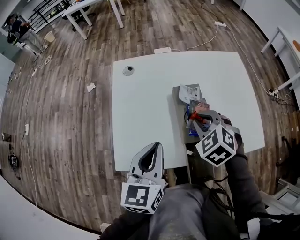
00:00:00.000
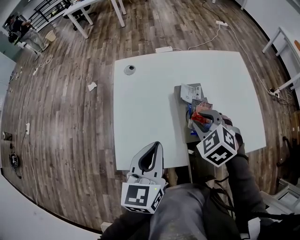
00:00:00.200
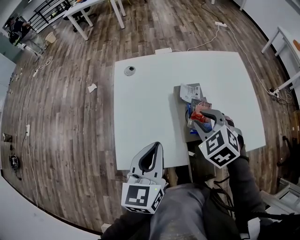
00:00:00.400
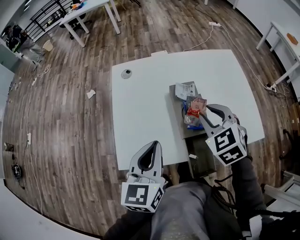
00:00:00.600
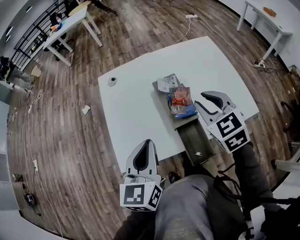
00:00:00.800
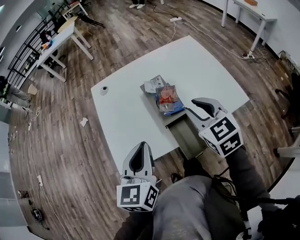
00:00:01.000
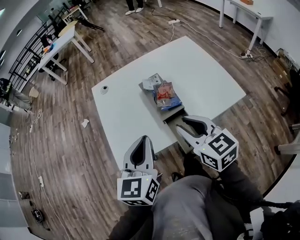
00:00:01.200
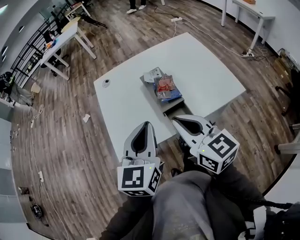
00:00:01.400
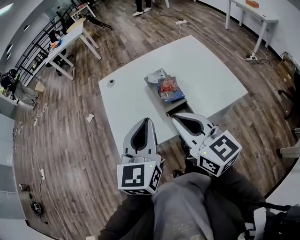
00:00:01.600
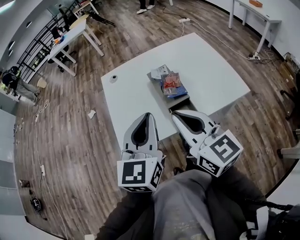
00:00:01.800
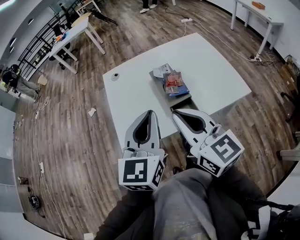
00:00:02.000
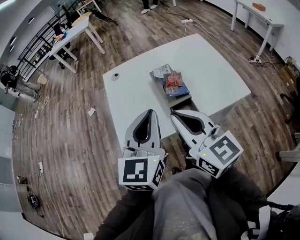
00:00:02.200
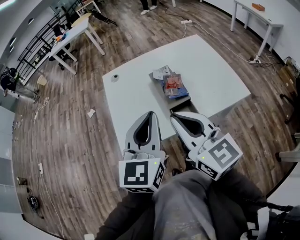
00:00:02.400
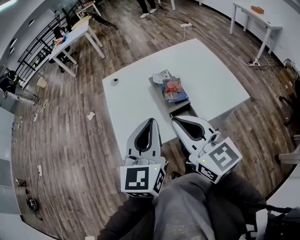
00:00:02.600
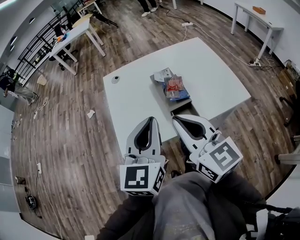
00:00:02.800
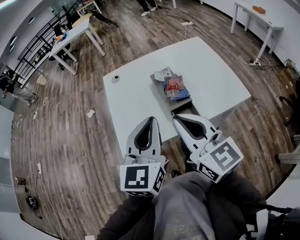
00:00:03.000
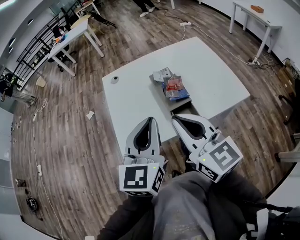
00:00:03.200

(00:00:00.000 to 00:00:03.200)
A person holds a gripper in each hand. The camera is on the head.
00:00:00.000 - 00:00:01.600: The left gripper shifts roughly 15 cm upward and backward, and rotates about 20 degrees. Meanwhile the right gripper shifts roughly 25 cm backward and upward, and tips its fingers upward by approximately 50 degrees.
00:00:01.600 - 00:00:03.200: The grippers stay close to where they were, moving slightly.

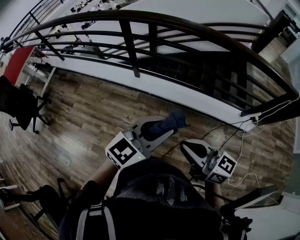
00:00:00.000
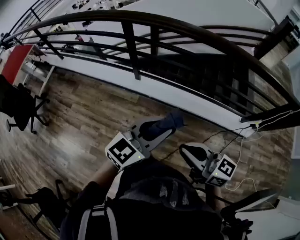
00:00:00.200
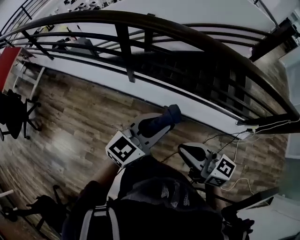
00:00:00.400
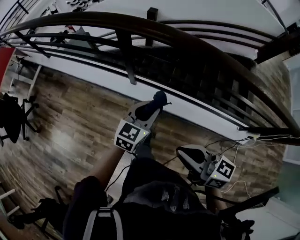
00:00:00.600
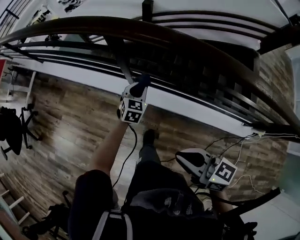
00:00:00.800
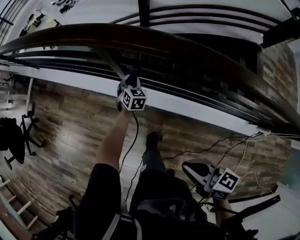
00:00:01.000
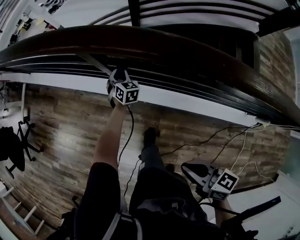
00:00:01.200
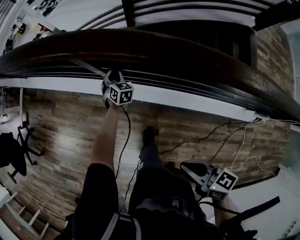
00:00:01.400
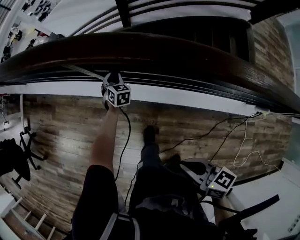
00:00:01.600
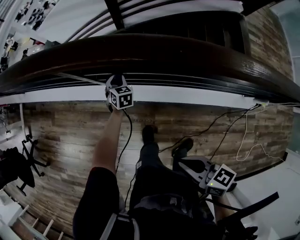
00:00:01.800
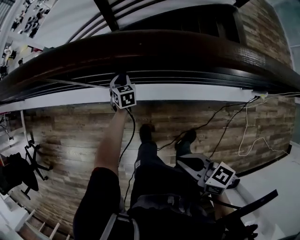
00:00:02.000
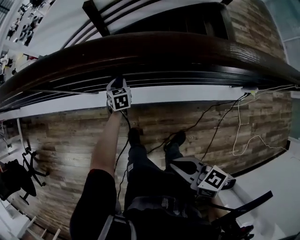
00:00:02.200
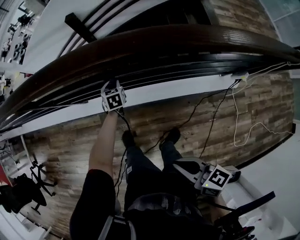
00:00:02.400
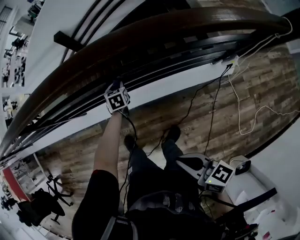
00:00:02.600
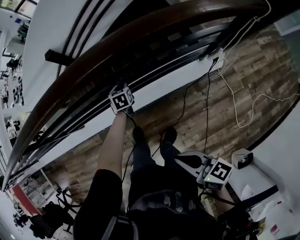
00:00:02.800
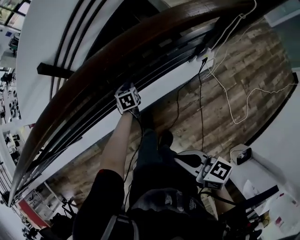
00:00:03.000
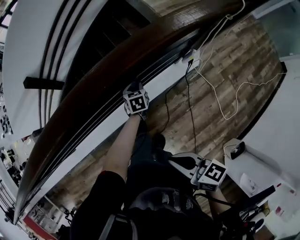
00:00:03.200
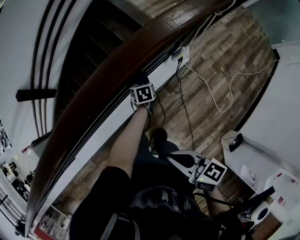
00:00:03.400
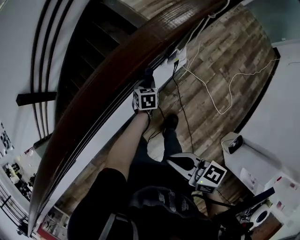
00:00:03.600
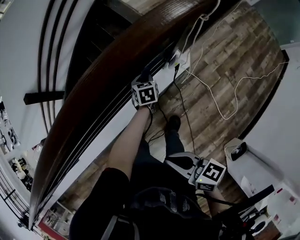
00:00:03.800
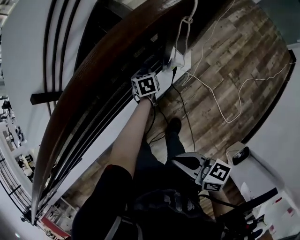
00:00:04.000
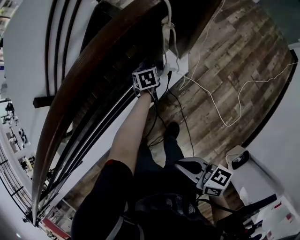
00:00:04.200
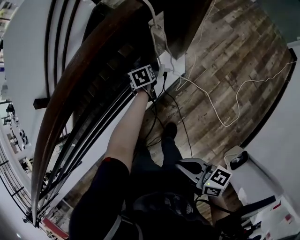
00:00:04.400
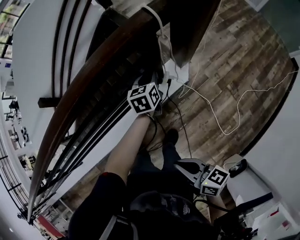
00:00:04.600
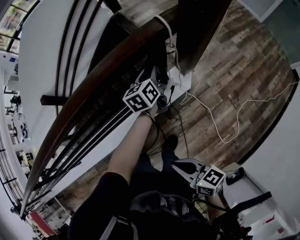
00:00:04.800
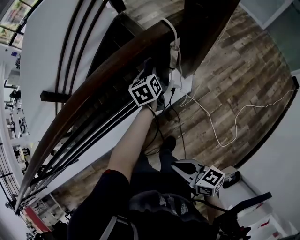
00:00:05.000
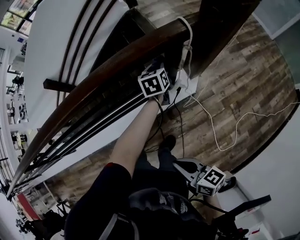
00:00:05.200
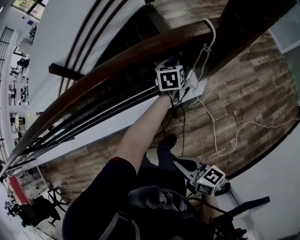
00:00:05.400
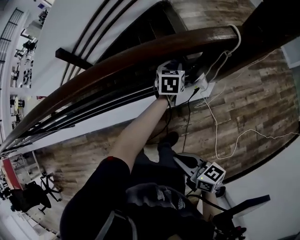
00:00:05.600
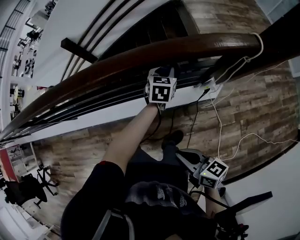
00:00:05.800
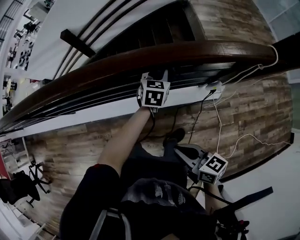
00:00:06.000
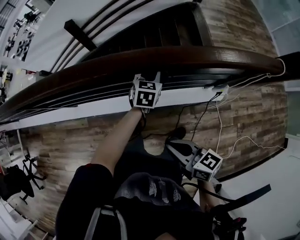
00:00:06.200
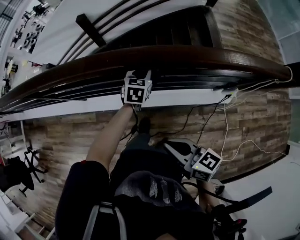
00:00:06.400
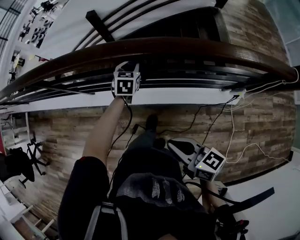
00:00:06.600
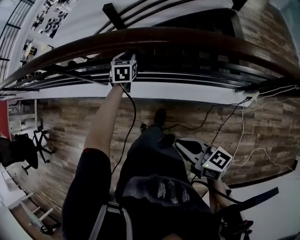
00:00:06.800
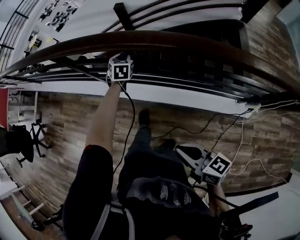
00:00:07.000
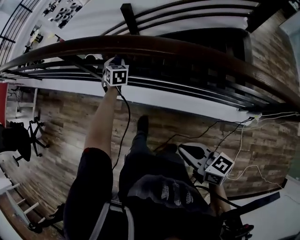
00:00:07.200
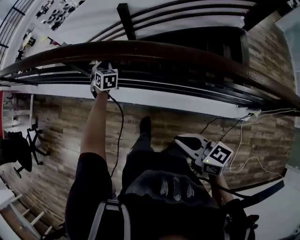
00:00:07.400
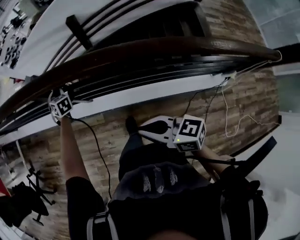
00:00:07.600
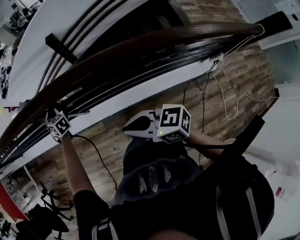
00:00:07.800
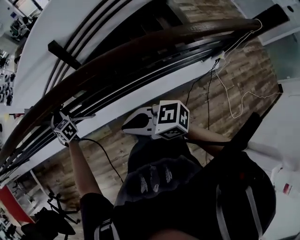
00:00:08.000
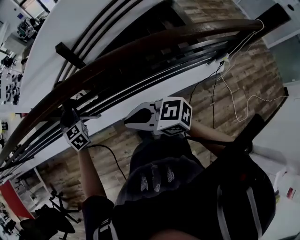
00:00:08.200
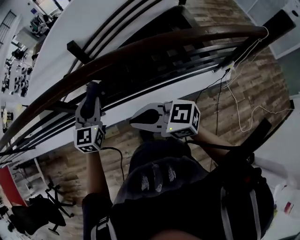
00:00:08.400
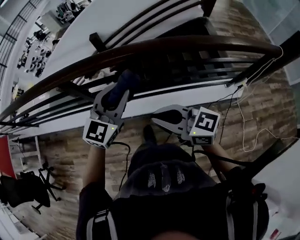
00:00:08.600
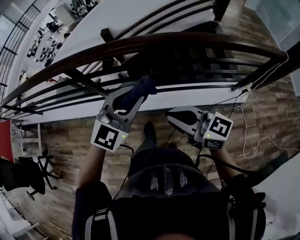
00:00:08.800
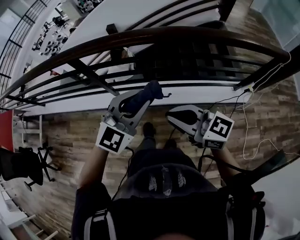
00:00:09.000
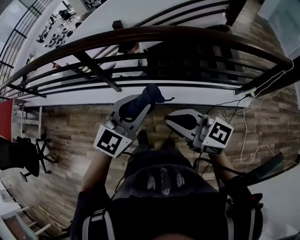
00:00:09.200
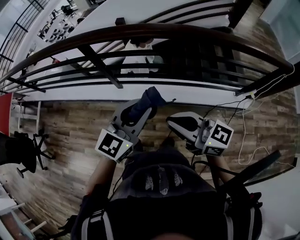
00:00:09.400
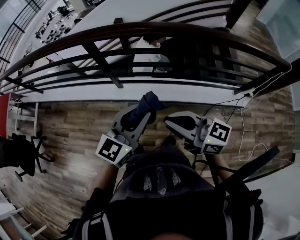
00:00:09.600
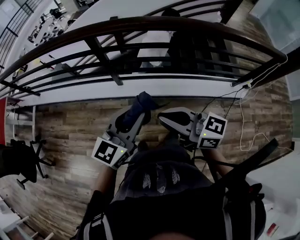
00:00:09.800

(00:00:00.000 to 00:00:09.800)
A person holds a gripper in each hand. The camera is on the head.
00:00:00.000 - 00:00:01.400: The left gripper moves about 80 cm, and points its fingers about 40 degrees further downward, while the right gripper moves about 35 cm, and changes its angle by some 30 degrees.
00:00:01.400 - 00:00:02.800: The pair of grippers is taken about 50 cm. The left gripper changes its angle by roughly 30 degrees. The right gripper rotates some 30 degrees.
00:00:02.800 - 00:00:04.200: The right gripper changes place by approximately 30 cm, and rotates some 20 degrees, while the left gripper ends up approximately 60 cm from where it was, and changes its angle by some 20 degrees.
00:00:04.200 - 00:00:05.600: The right gripper rotates roughly 20 degrees. Meanwhile the left gripper heads upward and to the left, covering approximately 20 cm.
00:00:05.600 - 00:00:07.000: The two grippers travel together, approximately 60 cm. The left gripper turns by some 40 degrees. Meanwhile the right gripper swivels approximately 30 degrees.
00:00:07.000 - 00:00:08.400: The right gripper changes place by approximately 30 cm, and changes its angle by approximately 20 degrees, while the left gripper moves upward, some 20 cm, and changes its angle by roughly 40 degrees.
00:00:08.400 - 00:00:09.800: The right gripper shifts some 20 cm backward and to the left. Meanwhile the left gripper heads backward, covering approximately 30 cm.

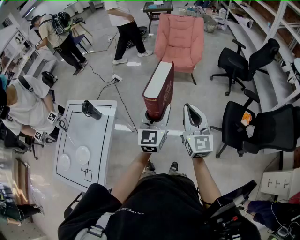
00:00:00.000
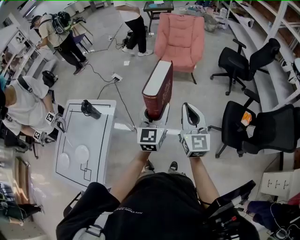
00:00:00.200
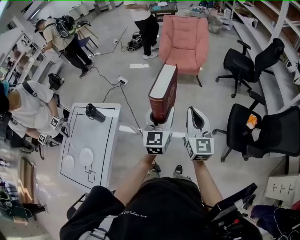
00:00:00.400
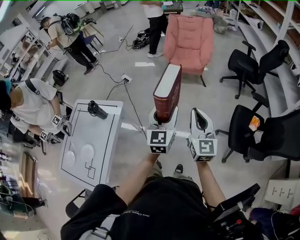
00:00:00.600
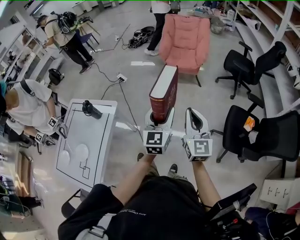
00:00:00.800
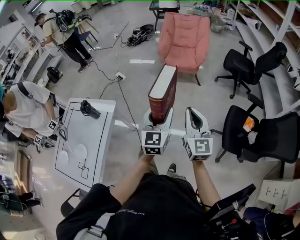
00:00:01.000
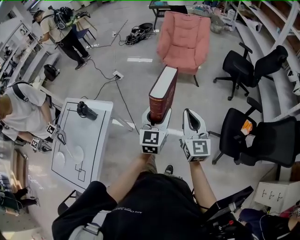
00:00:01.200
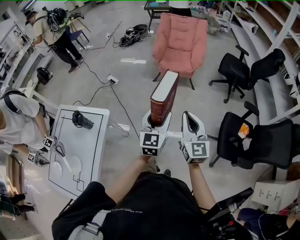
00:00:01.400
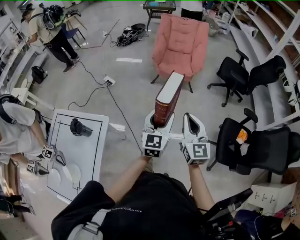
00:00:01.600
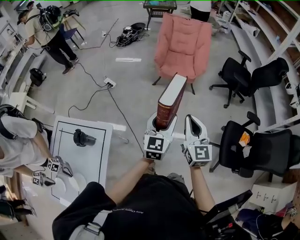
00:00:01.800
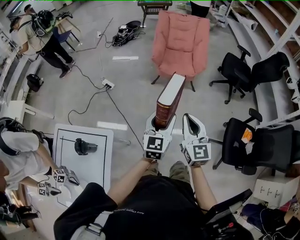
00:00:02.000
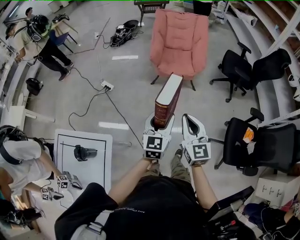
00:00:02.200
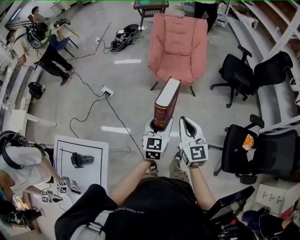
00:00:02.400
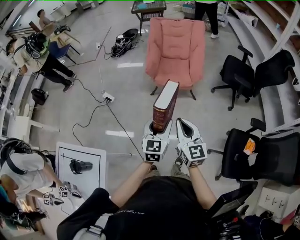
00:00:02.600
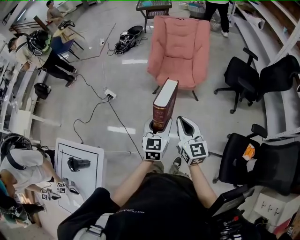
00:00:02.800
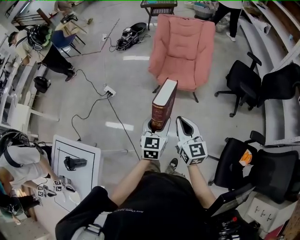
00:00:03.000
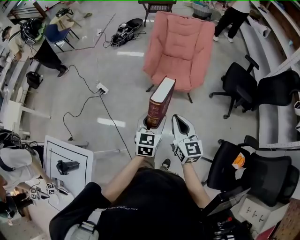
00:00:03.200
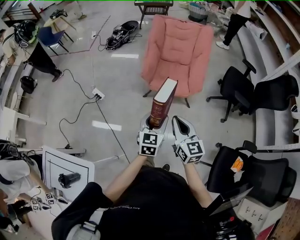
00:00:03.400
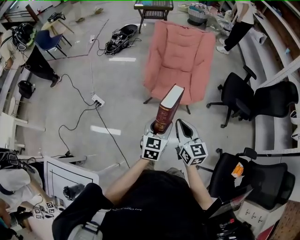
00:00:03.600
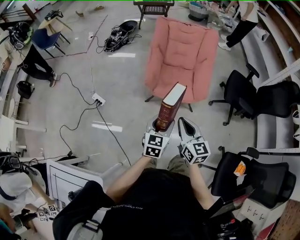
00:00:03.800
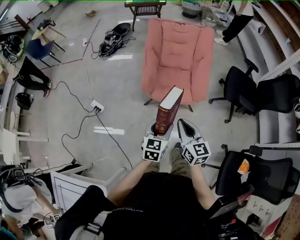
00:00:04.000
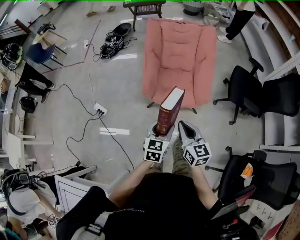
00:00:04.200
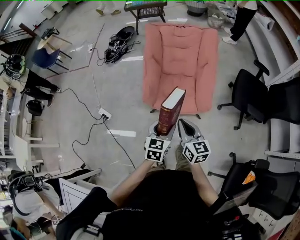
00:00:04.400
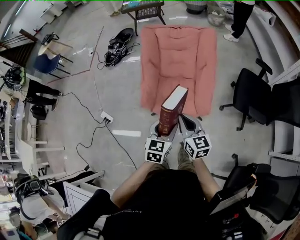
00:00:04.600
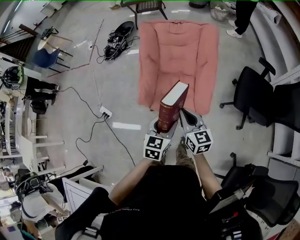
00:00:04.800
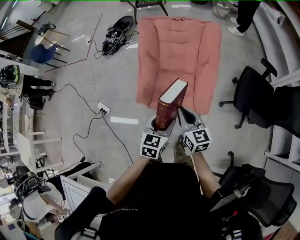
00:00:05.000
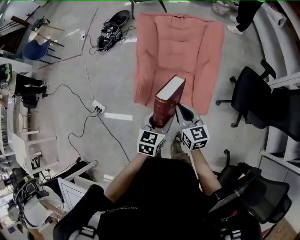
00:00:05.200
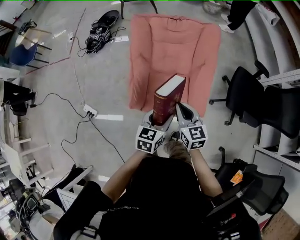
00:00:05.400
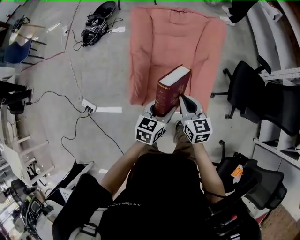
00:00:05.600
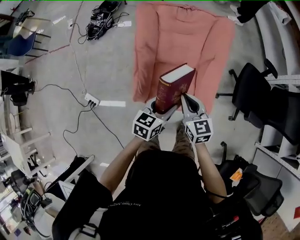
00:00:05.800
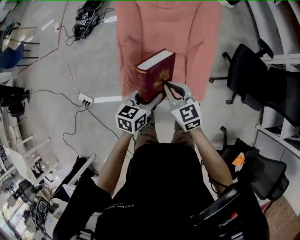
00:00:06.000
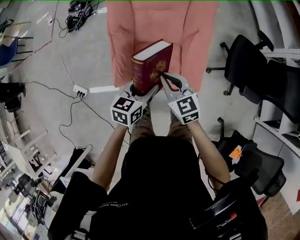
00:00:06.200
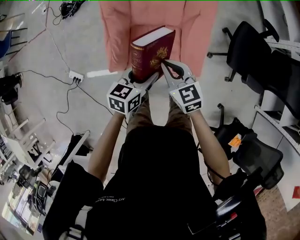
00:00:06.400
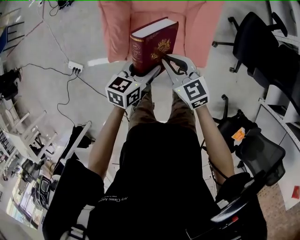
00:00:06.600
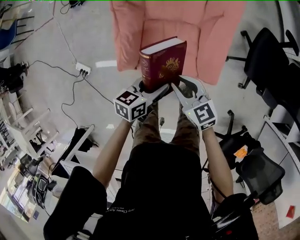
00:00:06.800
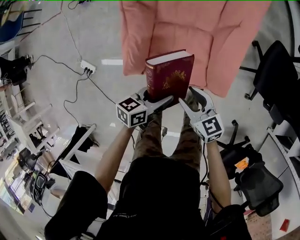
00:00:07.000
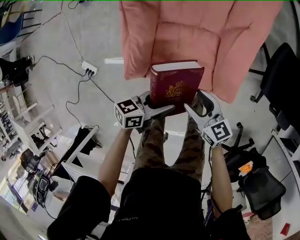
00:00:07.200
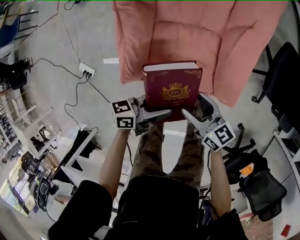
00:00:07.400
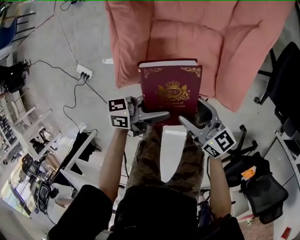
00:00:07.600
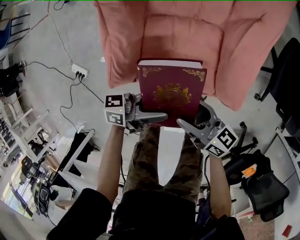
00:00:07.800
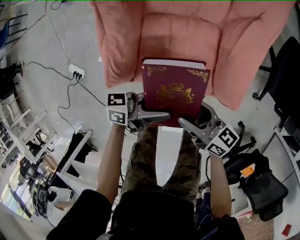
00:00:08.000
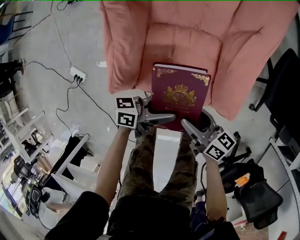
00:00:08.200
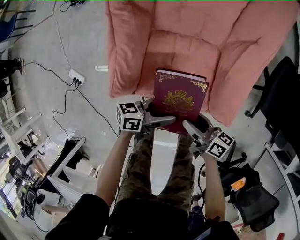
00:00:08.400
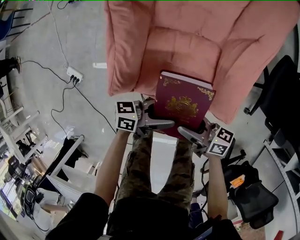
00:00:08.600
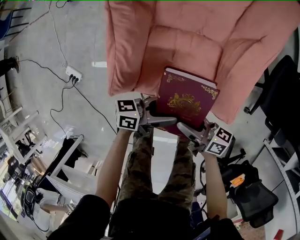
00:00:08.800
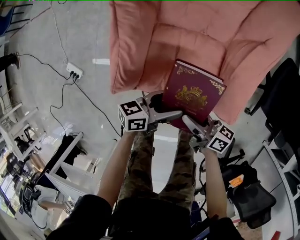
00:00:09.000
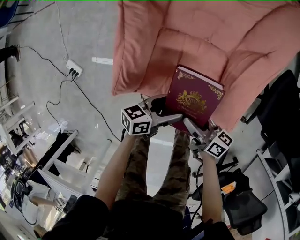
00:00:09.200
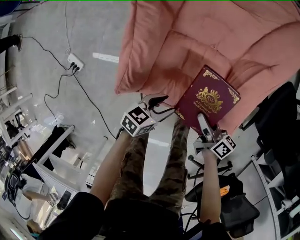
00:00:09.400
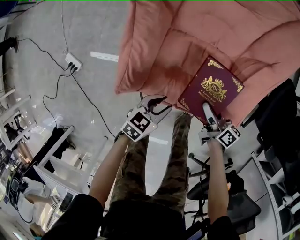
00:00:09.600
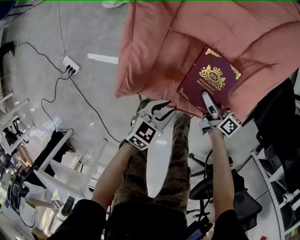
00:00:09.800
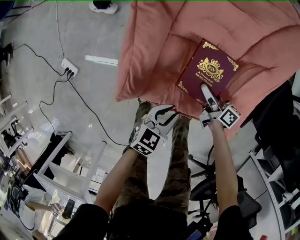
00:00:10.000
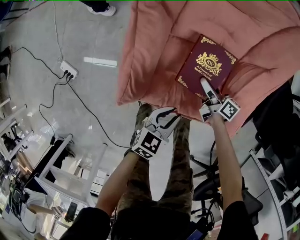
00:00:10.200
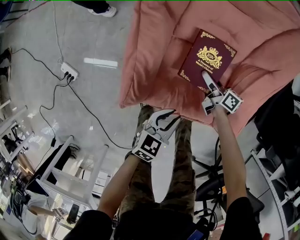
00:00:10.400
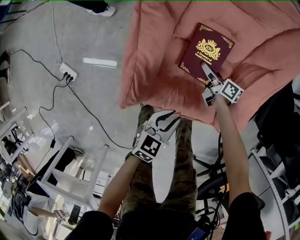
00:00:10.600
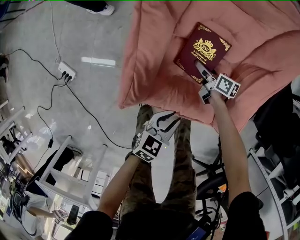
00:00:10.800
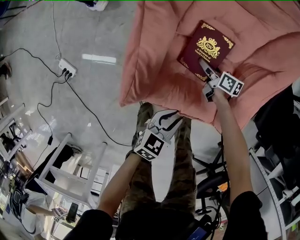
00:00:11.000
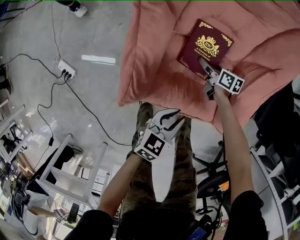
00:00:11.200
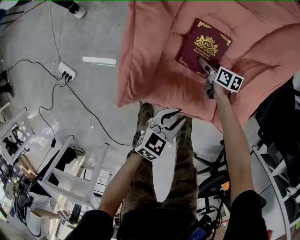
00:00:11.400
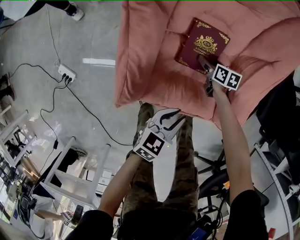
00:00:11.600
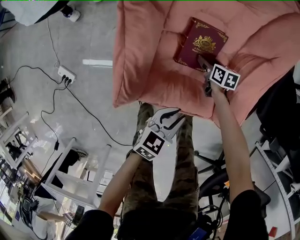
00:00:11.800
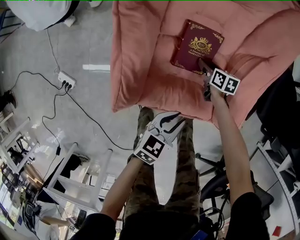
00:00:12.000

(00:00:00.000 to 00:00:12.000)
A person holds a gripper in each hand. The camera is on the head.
00:00:00.000 - 00:00:01.600: The grippers both shift forward by about 15 cm.
00:00:01.600 - 00:00:03.000: The grippers both shift forward by about 30 cm.
00:00:03.000 - 00:00:04.400: The two grippers go some 35 cm forward.
00:00:04.400 - 00:00:06.000: The grippers both shift forward by roughly 25 cm. The left gripper turns by about 20 degrees. The right gripper swivels some 20 degrees.
00:00:06.000 - 00:00:07.600: Both grippers travel together downward, some 25 cm. The right gripper turns by roughly 40 degrees, and opens up. The left gripper swivels approximately 50 degrees.
00:00:07.600 - 00:00:09.000: Both grippers move downward, some 5 cm. The right gripper rotates approximately 20 degrees.
00:00:09.000 - 00:00:10.400: The left gripper goes approximately 5 cm to the left, turns by some 40 degrees, and closes up, while the right gripper goes about 25 cm forward and downward.
00:00:10.400 - 00:00:12.000: The right gripper travels downward and to the right by roughly 10 cm, and tilts its fingers some 30 degrees downward.
